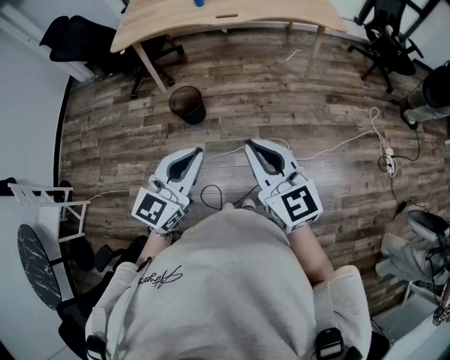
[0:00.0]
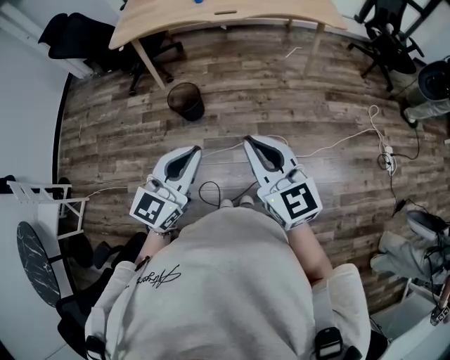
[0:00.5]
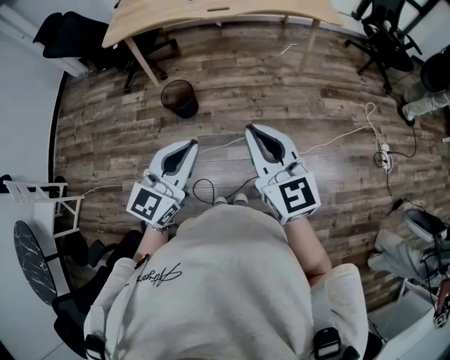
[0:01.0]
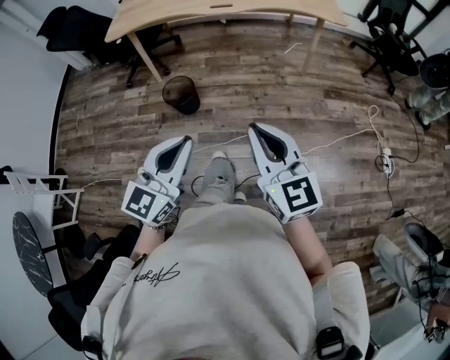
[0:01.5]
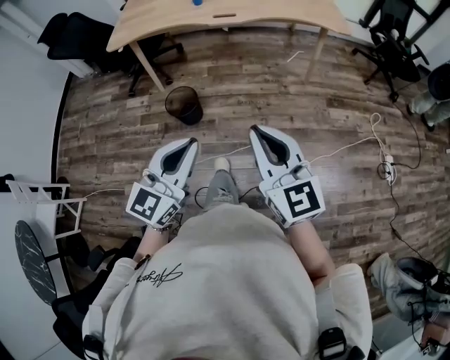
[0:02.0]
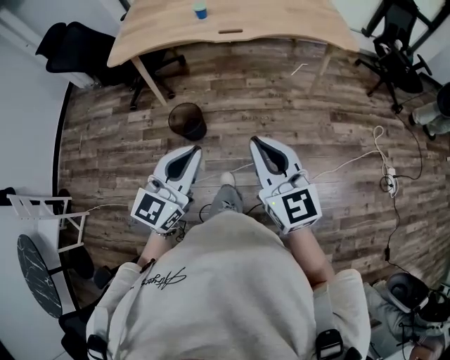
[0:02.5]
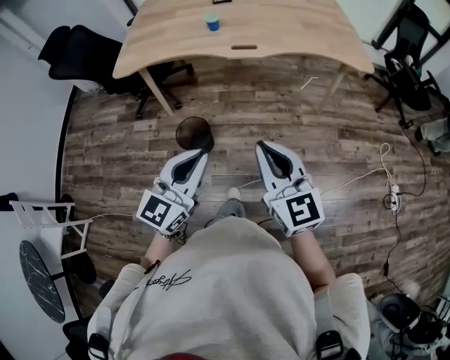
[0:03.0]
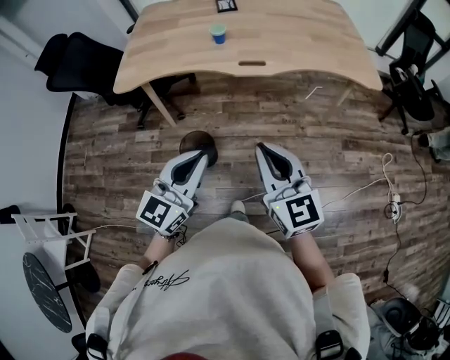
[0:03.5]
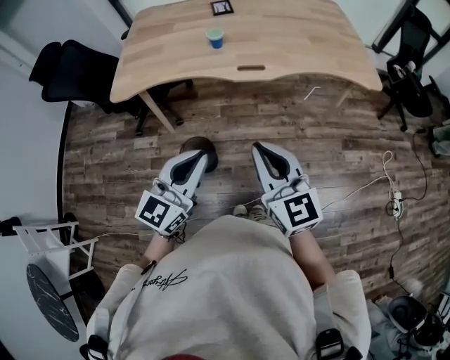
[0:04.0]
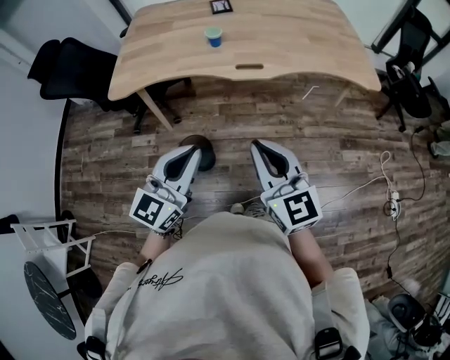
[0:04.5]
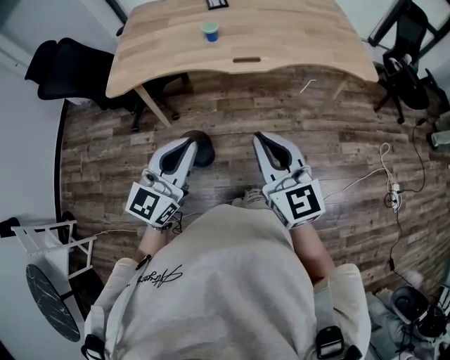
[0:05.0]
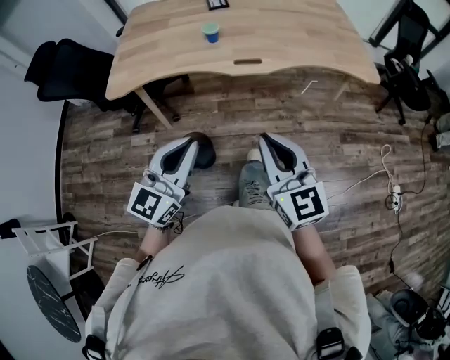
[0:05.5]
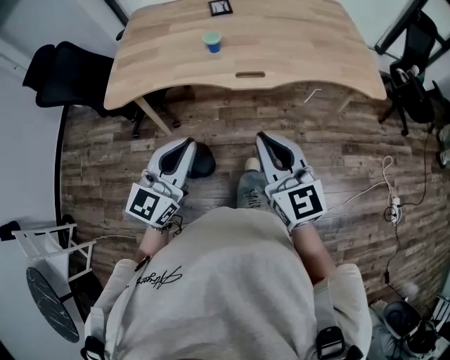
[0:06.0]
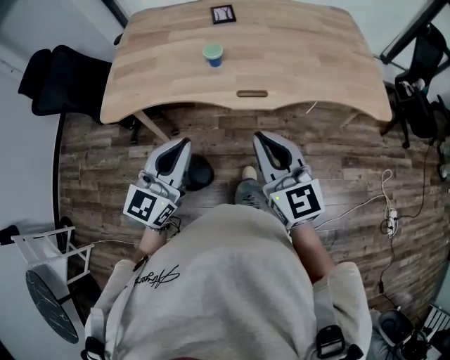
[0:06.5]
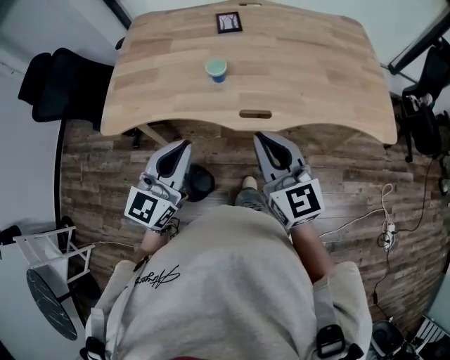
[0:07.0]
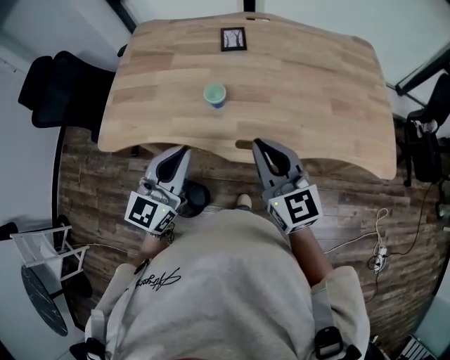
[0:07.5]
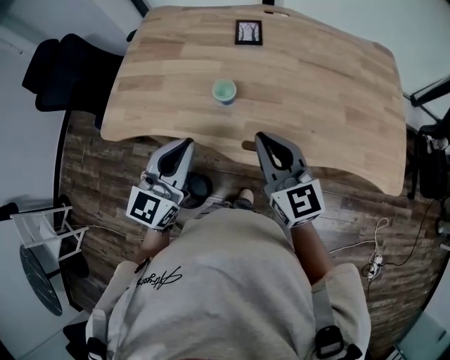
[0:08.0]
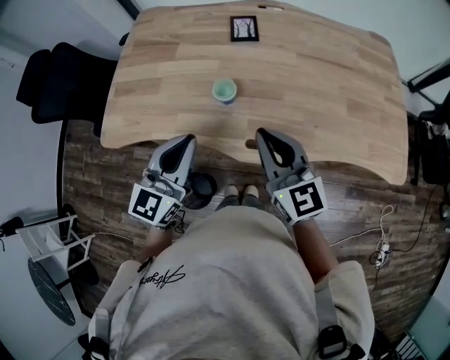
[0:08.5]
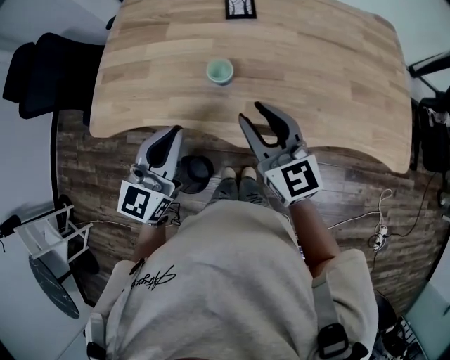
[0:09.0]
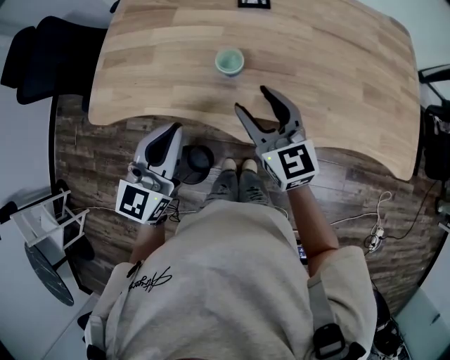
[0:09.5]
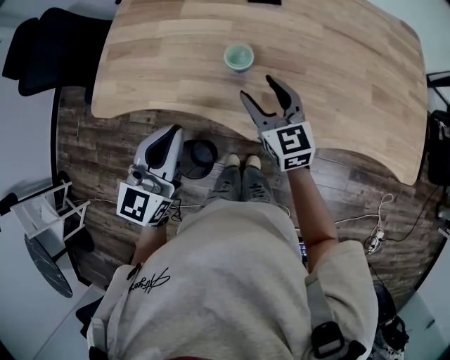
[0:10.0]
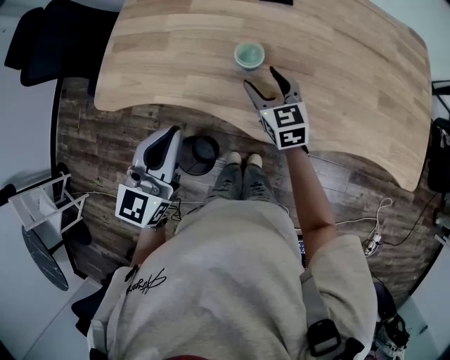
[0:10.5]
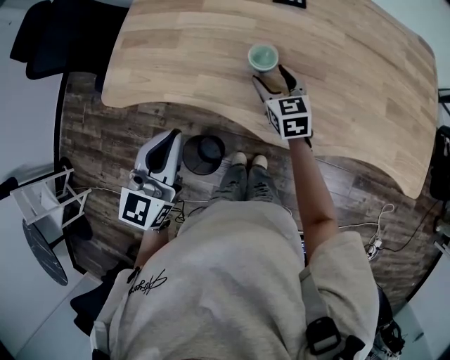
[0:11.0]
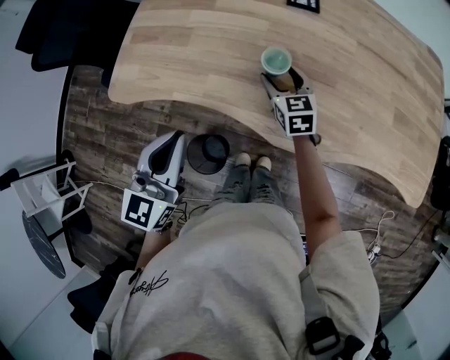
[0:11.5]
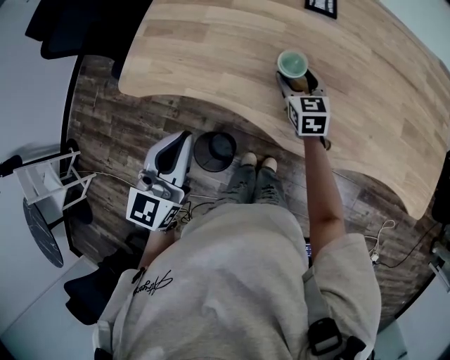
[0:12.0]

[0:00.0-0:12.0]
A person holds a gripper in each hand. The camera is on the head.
0:00.0 to 0:02.0: Both grippers move forward, roughly 5 cm.
0:02.0 to 0:04.0: The left gripper goes about 30 cm forward. The right gripper heads forward and to the left, covering roughly 30 cm.
0:04.0 to 0:06.0: Both grippers travel together forward, approximately 10 cm.
0:06.0 to 0:08.0: Both grippers move forward, roughly 30 cm.
0:08.0 to 0:10.0: The left gripper travels to the left by approximately 5 cm. Meanwhile the right gripper moves downward, forward and to the left, about 15 cm, and opens its fingers.
0:10.0 to 0:12.0: The right gripper is displaced downward and forward by roughly 15 cm; the left gripper is displaced to the left by some 10 cm.

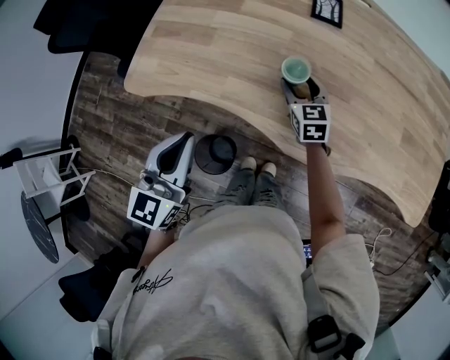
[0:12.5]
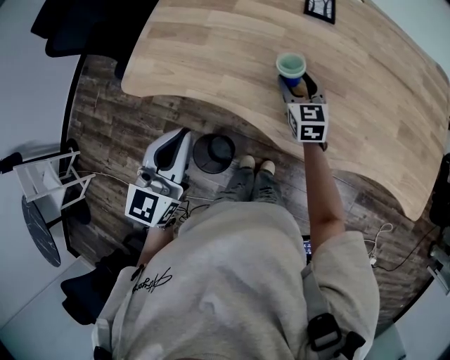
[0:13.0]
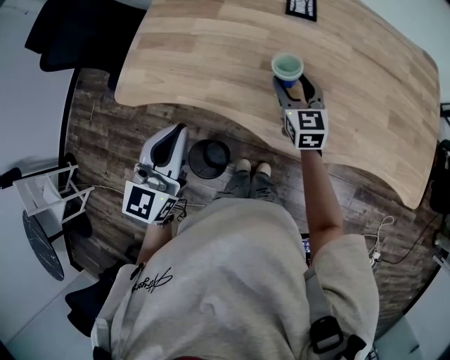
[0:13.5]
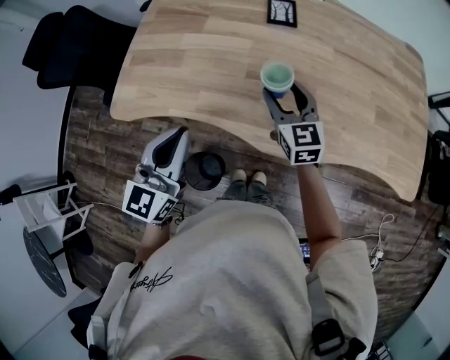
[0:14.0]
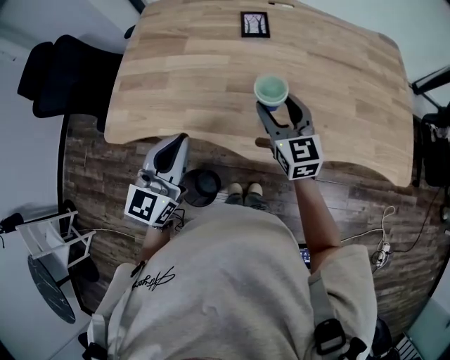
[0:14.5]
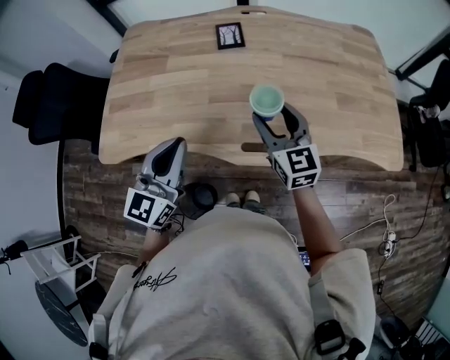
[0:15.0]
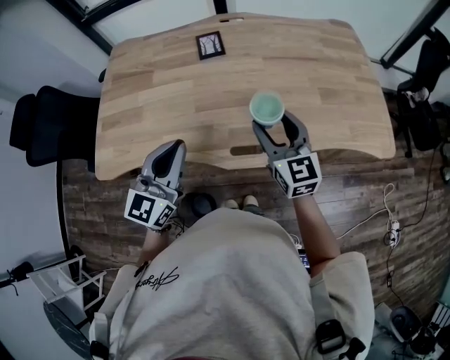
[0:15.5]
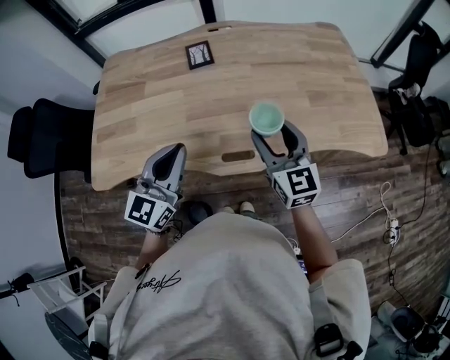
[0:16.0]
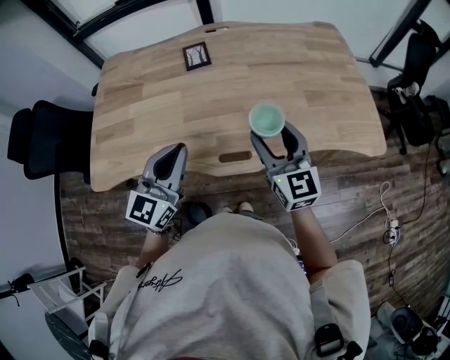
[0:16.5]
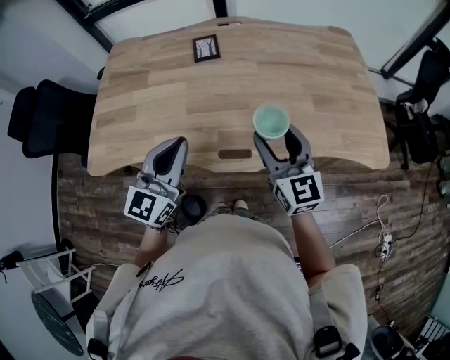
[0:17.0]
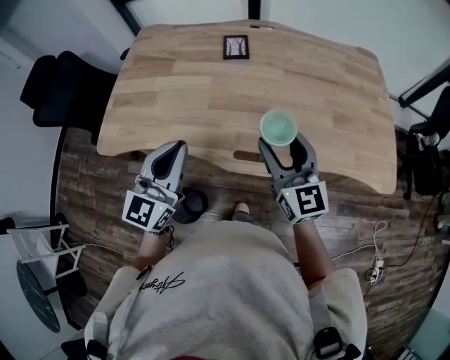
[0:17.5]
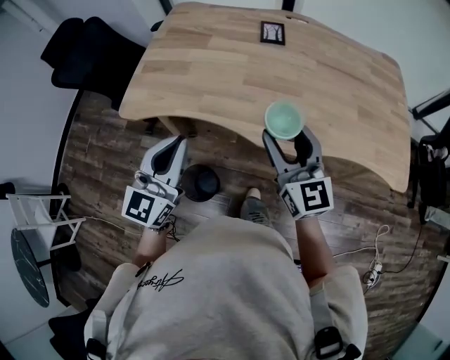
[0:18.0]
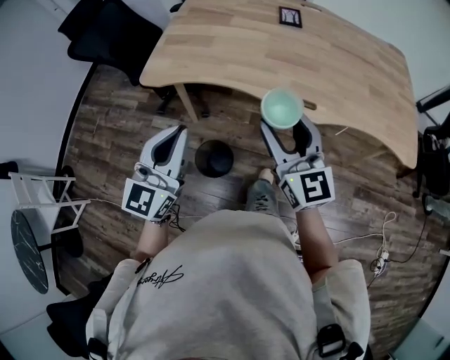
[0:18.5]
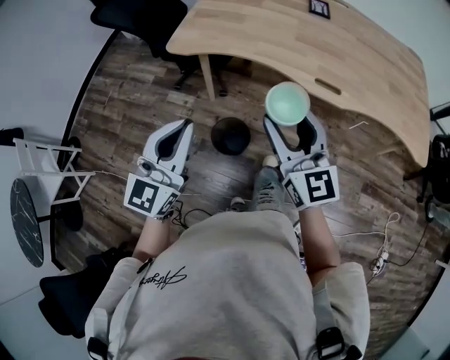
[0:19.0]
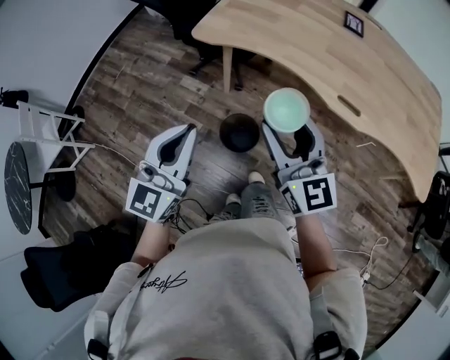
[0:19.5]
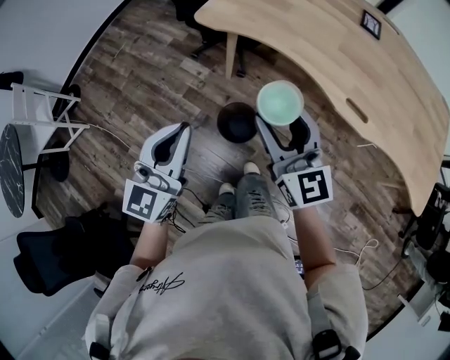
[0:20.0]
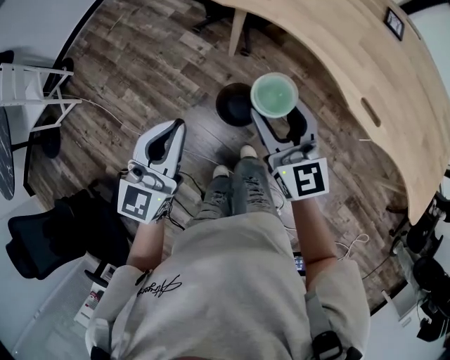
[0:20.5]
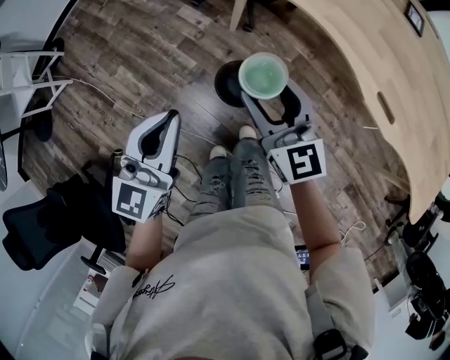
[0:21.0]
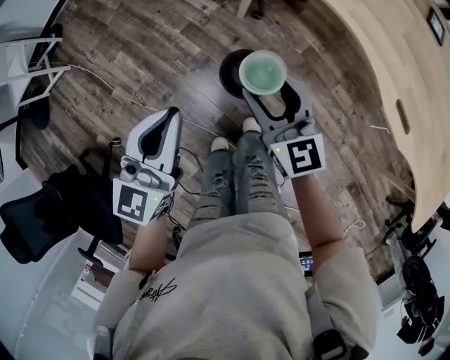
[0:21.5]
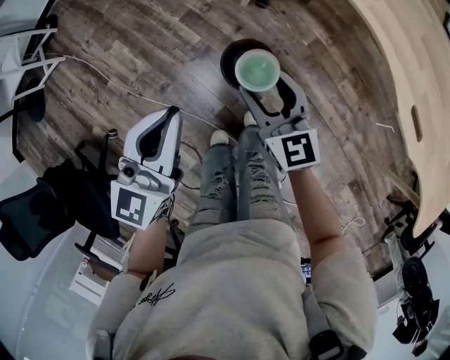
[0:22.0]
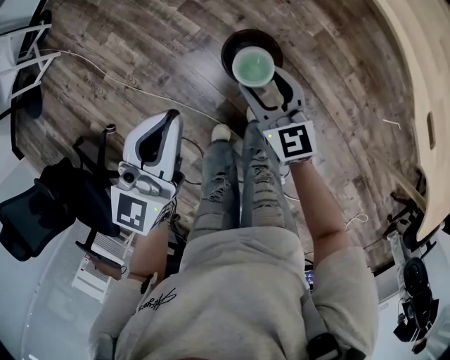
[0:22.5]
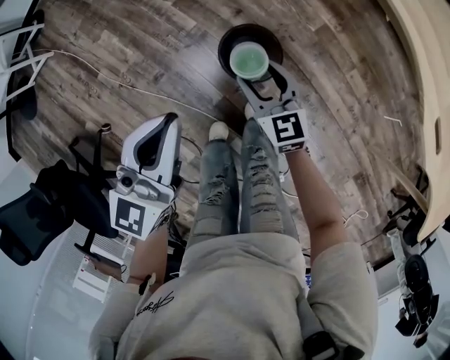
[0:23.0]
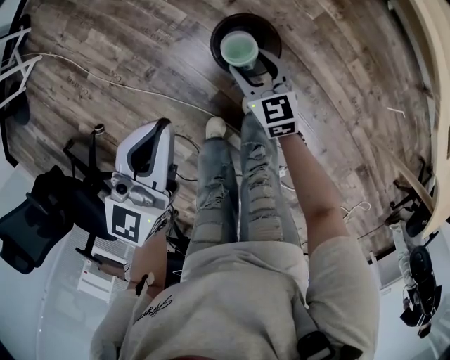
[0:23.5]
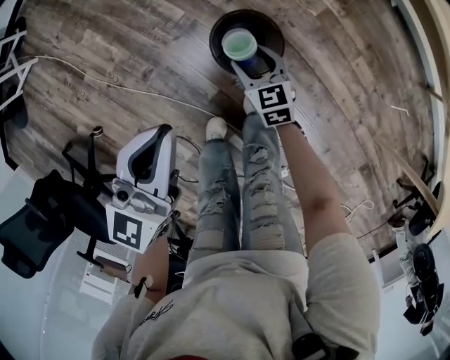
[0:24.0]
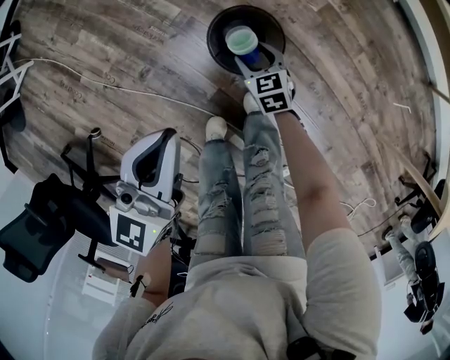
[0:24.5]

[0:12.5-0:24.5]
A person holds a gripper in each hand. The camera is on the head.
0:12.5 to 0:14.5: The left gripper goes some 10 cm to the right, while the right gripper travels upward, backward and to the right by some 20 cm.
0:14.5 to 0:16.5: The left gripper shifts roughly 10 cm to the right, while the right gripper goes approximately 15 cm to the right, backward and upward.
0:16.5 to 0:18.5: The right gripper goes approximately 30 cm to the left and backward, and changes its angle by some 20 degrees, while the left gripper shifts some 30 cm backward and to the left, and changes its angle by approximately 20 degrees.
0:18.5 to 0:20.5: The right gripper goes approximately 25 cm to the left and downward, and swivels roughly 30 degrees, while the left gripper is displaced to the left, downward and backward by about 20 cm, and rotates approximately 20 degrees.
0:20.5 to 0:22.5: The left gripper travels downward by about 15 cm. The right gripper is displaced downward by approximately 30 cm, and turns by roughly 20 degrees.
0:22.5 to 0:24.5: The left gripper shifts approximately 10 cm downward. The right gripper is displaced downward by some 30 cm, and changes its angle by about 30 degrees.

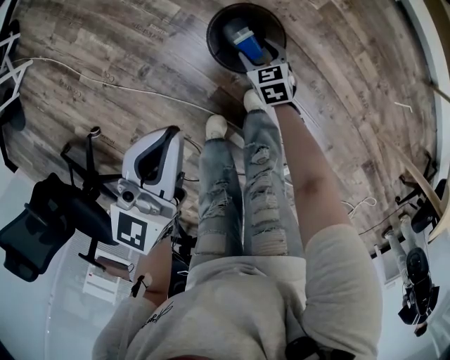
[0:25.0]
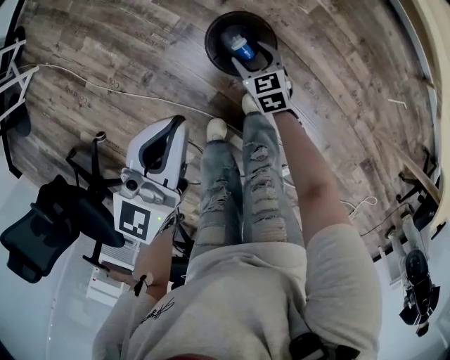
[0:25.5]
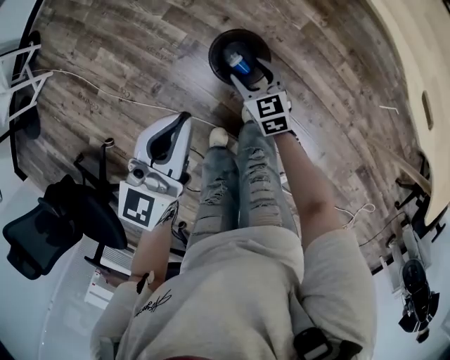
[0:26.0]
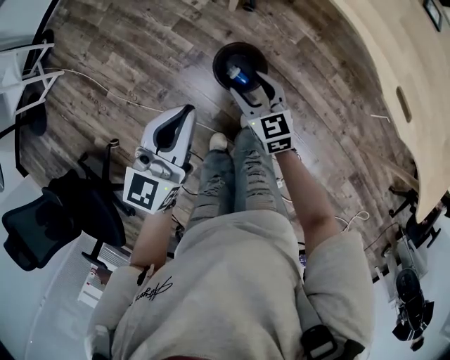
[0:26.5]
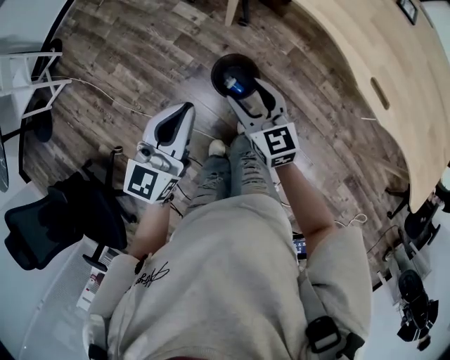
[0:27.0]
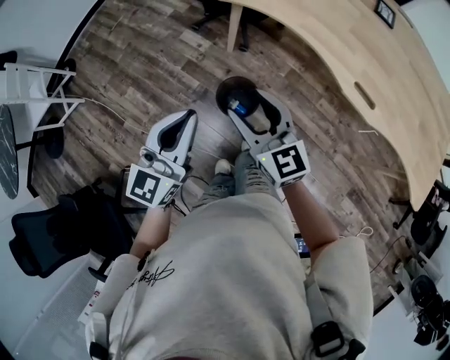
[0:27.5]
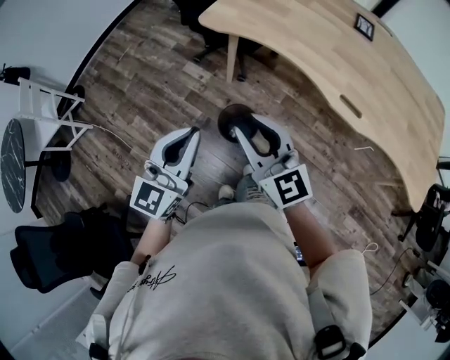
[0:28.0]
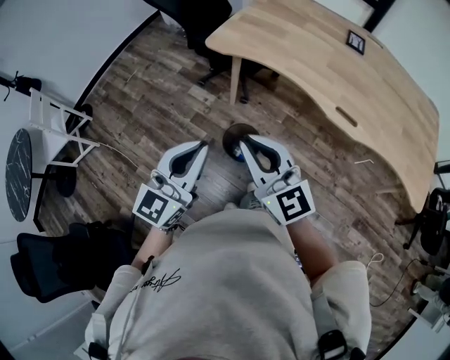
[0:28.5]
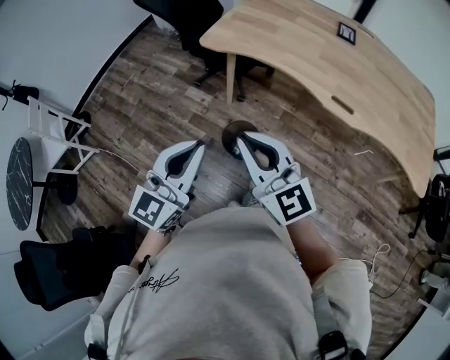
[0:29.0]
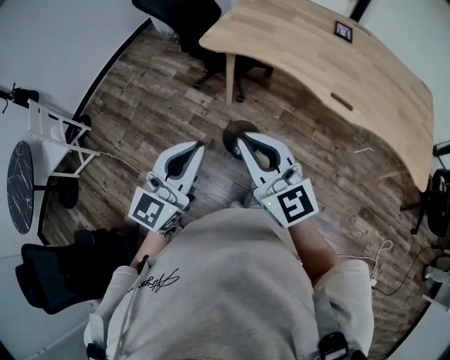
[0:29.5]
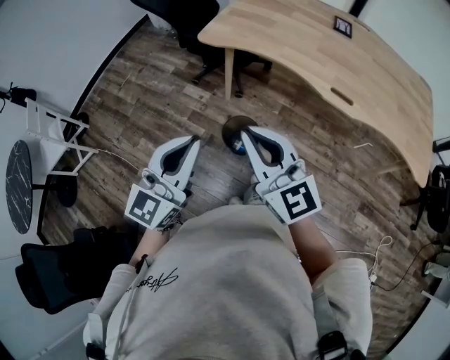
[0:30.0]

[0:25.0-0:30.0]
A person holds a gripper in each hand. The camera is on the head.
0:25.0 to 0:27.5: The right gripper goes about 60 cm upward, and tips its fingers upward by approximately 50 degrees. The left gripper goes approximately 25 cm upward.
0:27.5 to 0:30.0: The right gripper goes roughly 20 cm upward and backward, and closes; the left gripper shifts roughly 15 cm backward and upward.
